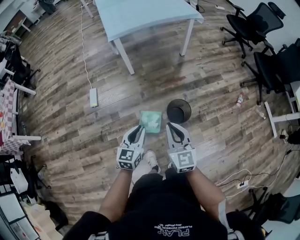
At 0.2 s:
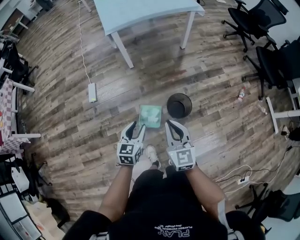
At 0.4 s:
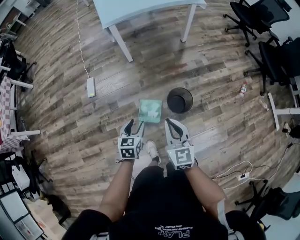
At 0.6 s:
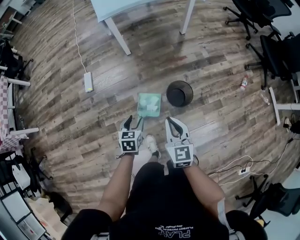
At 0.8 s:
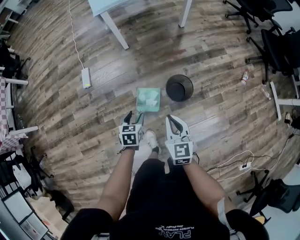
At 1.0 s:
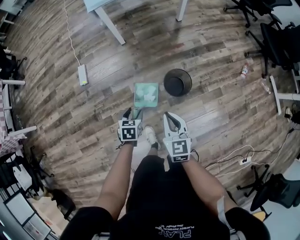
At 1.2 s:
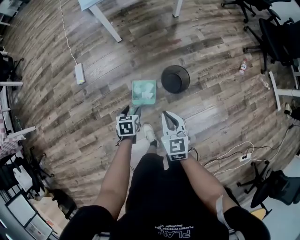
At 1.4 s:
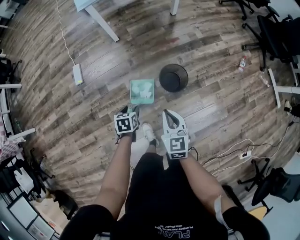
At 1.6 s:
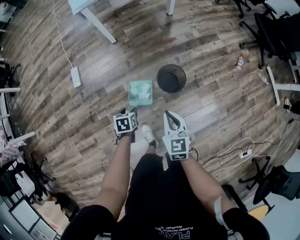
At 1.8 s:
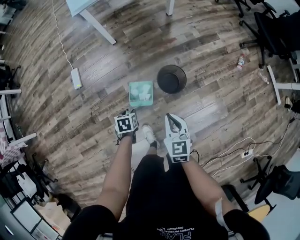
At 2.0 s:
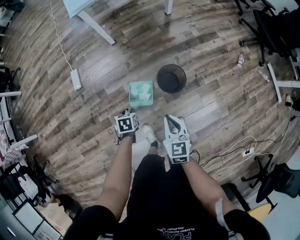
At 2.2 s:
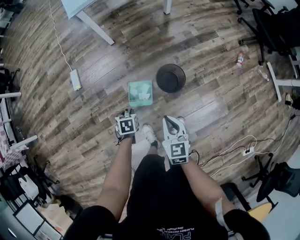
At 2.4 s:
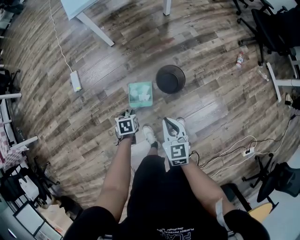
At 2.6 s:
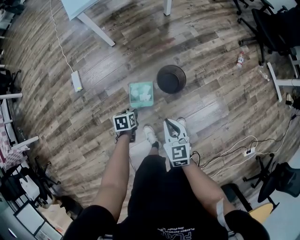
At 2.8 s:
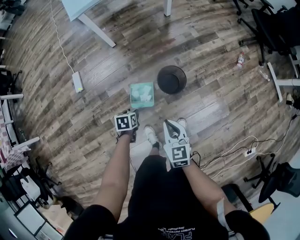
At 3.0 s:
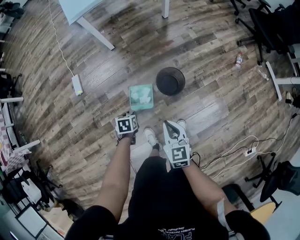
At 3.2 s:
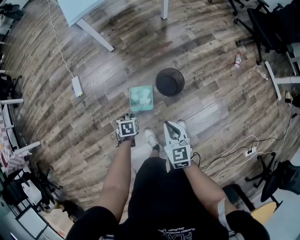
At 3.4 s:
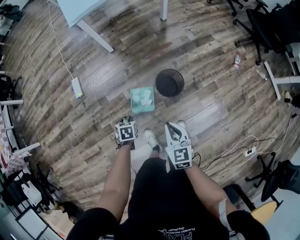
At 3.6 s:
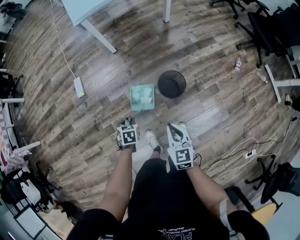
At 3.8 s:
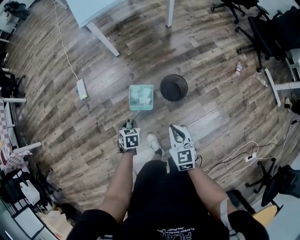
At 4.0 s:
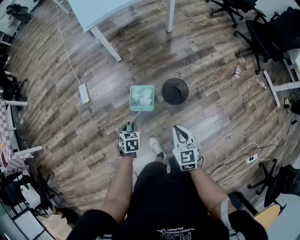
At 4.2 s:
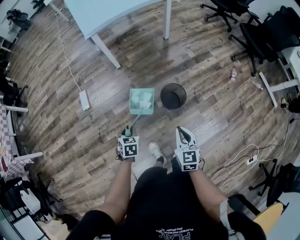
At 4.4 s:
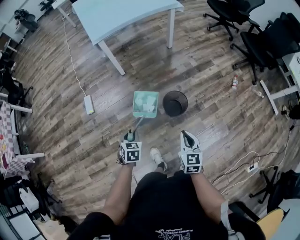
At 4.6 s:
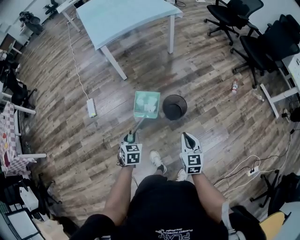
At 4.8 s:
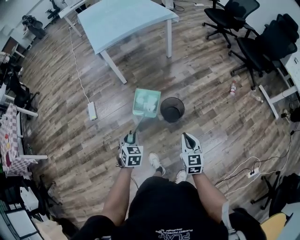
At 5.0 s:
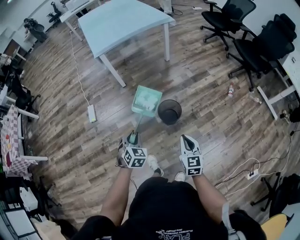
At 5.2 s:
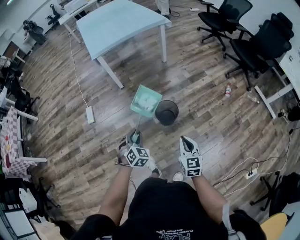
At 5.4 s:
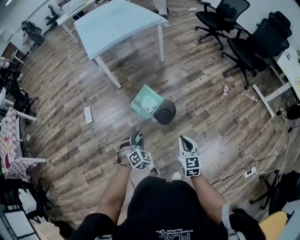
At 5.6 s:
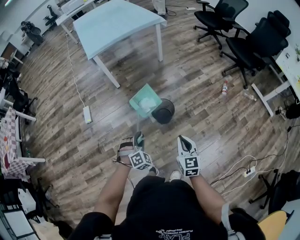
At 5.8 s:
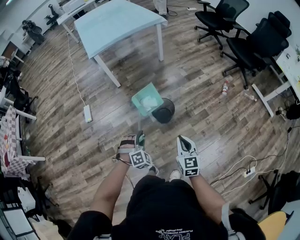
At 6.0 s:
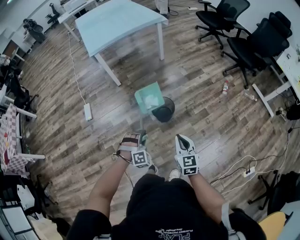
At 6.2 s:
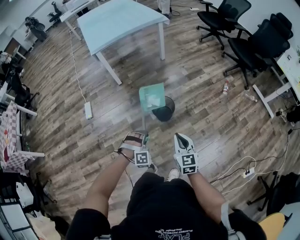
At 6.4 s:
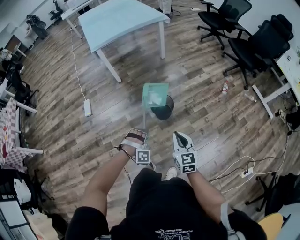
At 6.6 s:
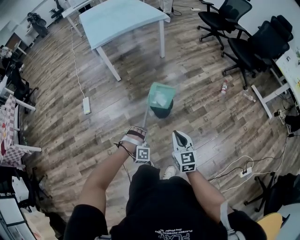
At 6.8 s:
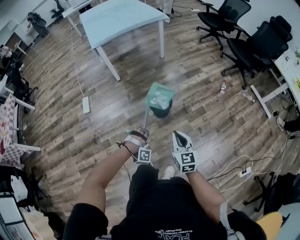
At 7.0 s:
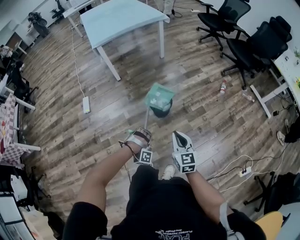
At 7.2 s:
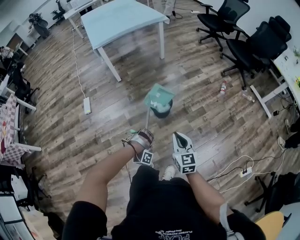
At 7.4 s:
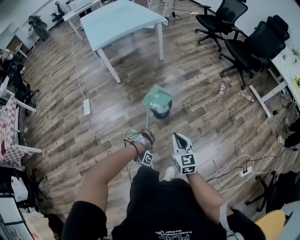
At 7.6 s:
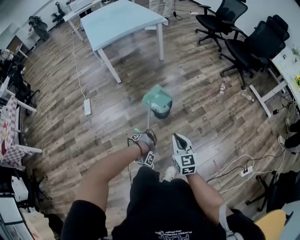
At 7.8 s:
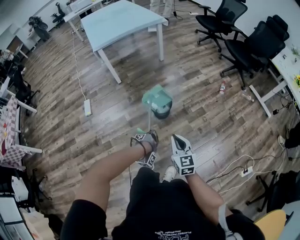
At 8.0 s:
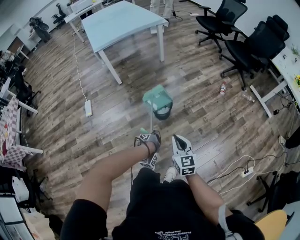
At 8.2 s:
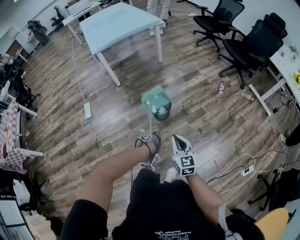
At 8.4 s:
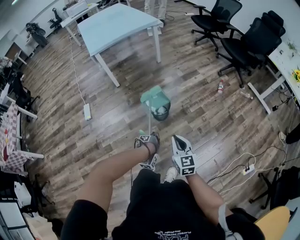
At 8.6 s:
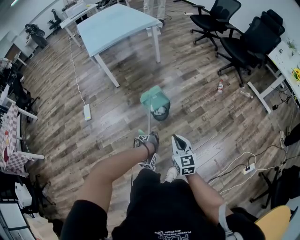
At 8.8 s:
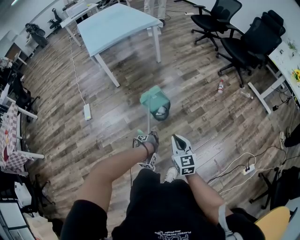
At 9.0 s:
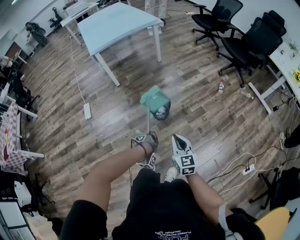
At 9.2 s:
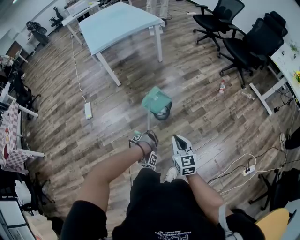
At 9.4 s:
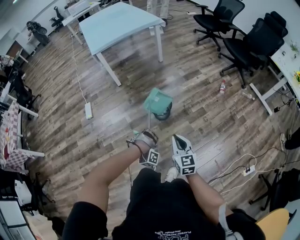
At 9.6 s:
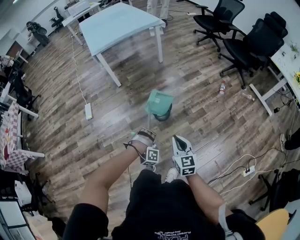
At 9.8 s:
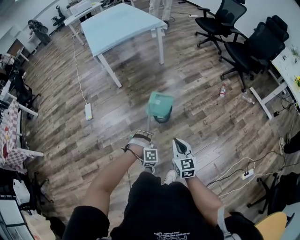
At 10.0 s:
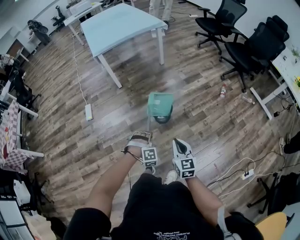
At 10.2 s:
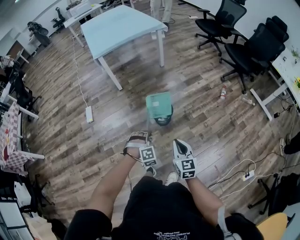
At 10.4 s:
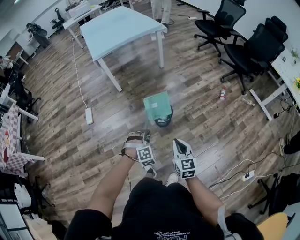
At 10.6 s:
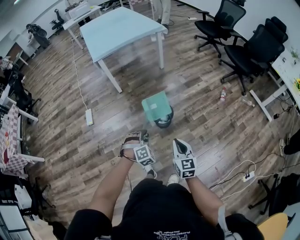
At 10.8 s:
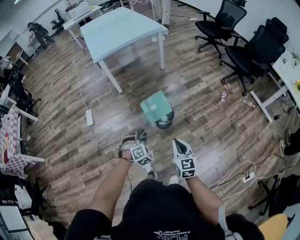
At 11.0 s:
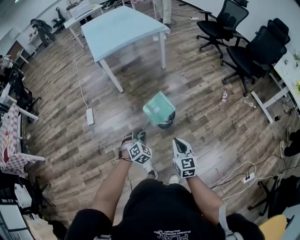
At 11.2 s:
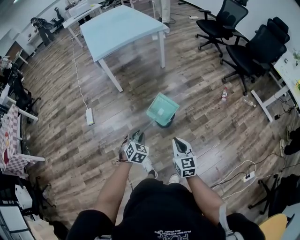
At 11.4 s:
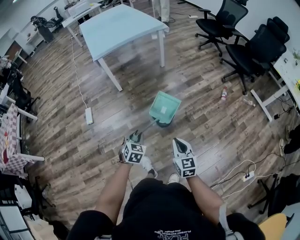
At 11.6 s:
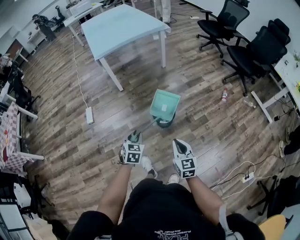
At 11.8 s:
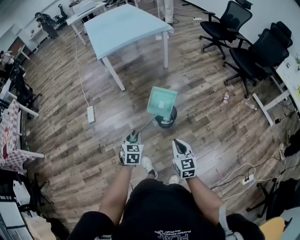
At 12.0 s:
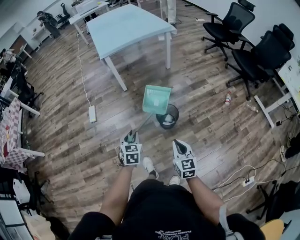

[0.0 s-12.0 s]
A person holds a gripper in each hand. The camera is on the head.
0.0 to 1.6 s: Both grippers move downward, about 20 cm. The right gripper rotates roughly 20 degrees, while the left gripper tilts its fingers about 40 degrees downward, and opens its fingers.
1.6 to 3.0 s: There are only small adjustments of the grippers.
3.0 to 4.4 s: The right gripper changes place by roughly 5 cm. Meanwhile the left gripper is displaced upward by about 15 cm, and rotates about 30 degrees.
4.4 to 6.0 s: The left gripper heads to the right and backward, covering roughly 20 cm, and twists about 80 degrees clockwise, seen from behind. Meanwhile the right gripper moves to the right and backward, some 15 cm.
6.0 to 7.6 s: The right gripper moves backward, approximately 10 cm. Meanwhile the left gripper heads backward and downward, covering approximately 15 cm, and twists roughly 70 degrees clockwise, seen from behind.
7.6 to 9.0 s: The grippers stay close to where they were, moving slightly.
9.0 to 10.4 s: The left gripper heads upward and forward, covering approximately 10 cm, and twists approximately 90 degrees counterclockwise, seen from behind.
10.4 to 12.0 s: The left gripper is displaced to the left and upward by about 15 cm, and rotates around the line of its fingers by some 70 degrees, counterclockwise from behind; the right gripper changes place by some 5 cm.

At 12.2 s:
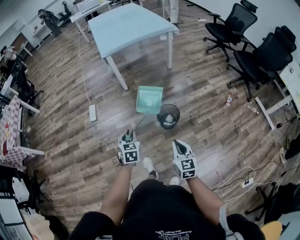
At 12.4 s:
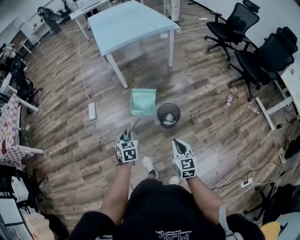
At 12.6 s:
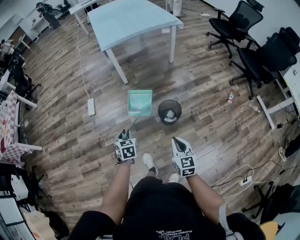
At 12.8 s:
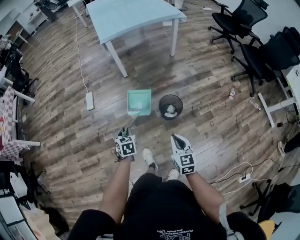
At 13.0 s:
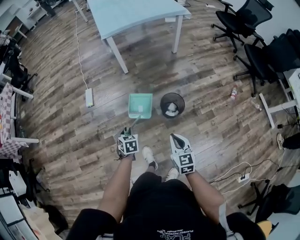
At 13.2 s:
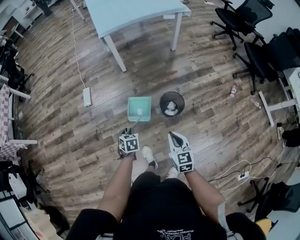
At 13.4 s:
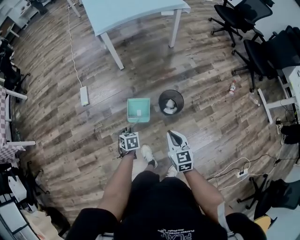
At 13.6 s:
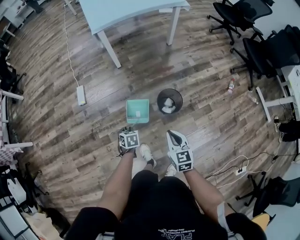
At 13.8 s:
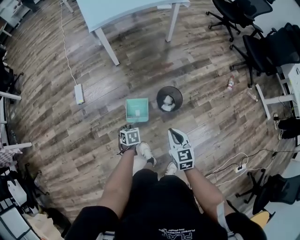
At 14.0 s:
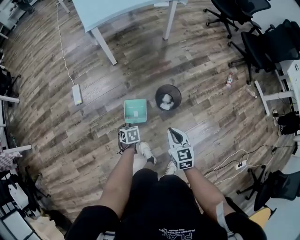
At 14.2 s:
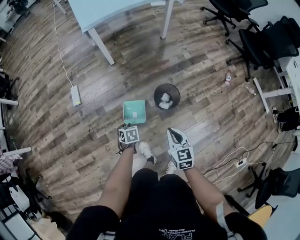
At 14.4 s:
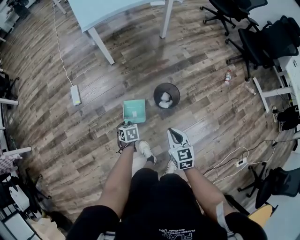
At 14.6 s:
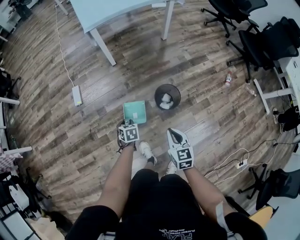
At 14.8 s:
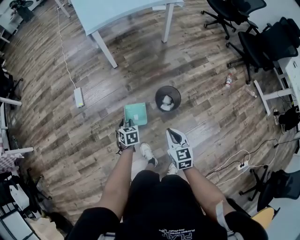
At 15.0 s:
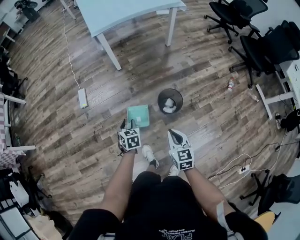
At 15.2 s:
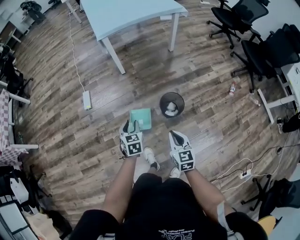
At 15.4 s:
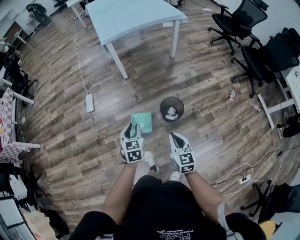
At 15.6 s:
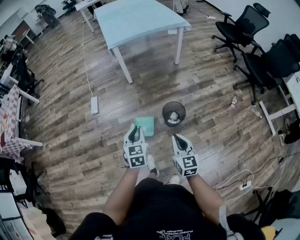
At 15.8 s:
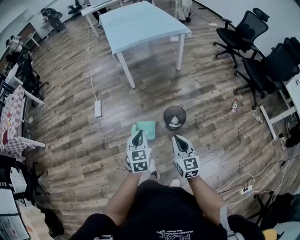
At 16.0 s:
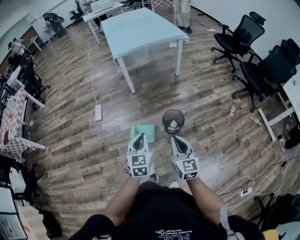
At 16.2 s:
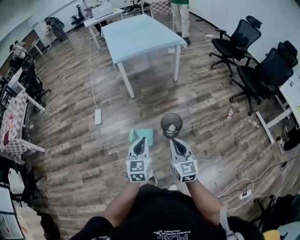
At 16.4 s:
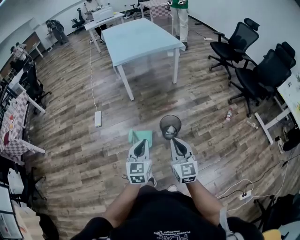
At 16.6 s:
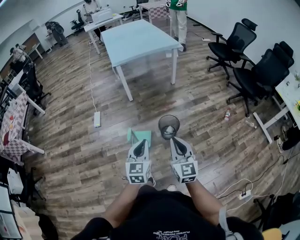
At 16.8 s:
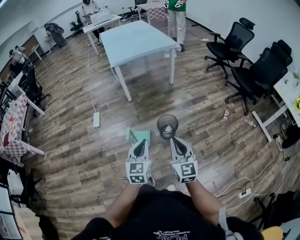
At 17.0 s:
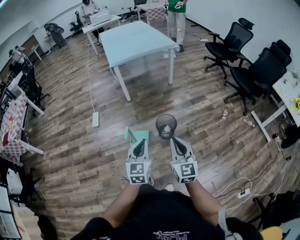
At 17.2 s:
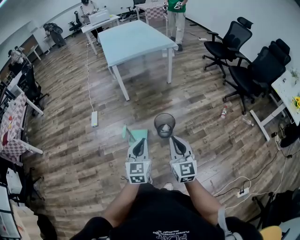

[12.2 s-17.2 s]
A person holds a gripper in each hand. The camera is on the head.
12.2 to 13.8 s: The right gripper goes approximately 15 cm forward, downward and to the left. Meanwhile the left gripper heads downward and forward, covering about 25 cm, and rotates roughly 30 degrees.
13.8 to 15.6 s: The left gripper is displaced upward by roughly 25 cm, and angles its fingers upward, by roughly 40 degrees, while the right gripper heads upward and backward, covering about 10 cm.
15.6 to 17.2 s: Both grippers move backward, upward and to the right, approximately 20 cm. The left gripper turns by about 20 degrees.

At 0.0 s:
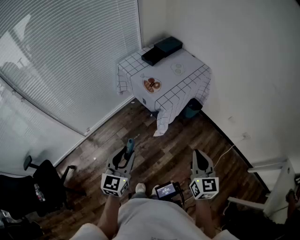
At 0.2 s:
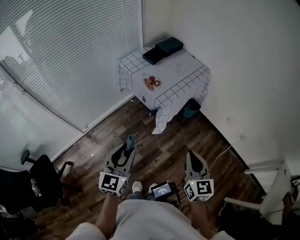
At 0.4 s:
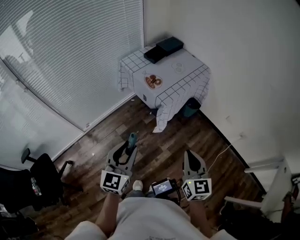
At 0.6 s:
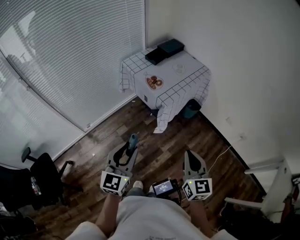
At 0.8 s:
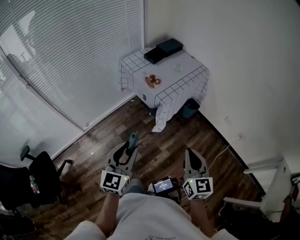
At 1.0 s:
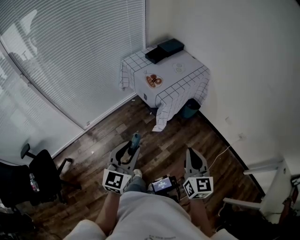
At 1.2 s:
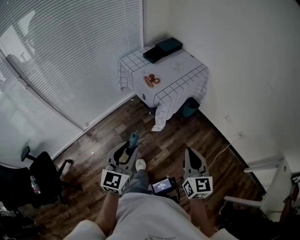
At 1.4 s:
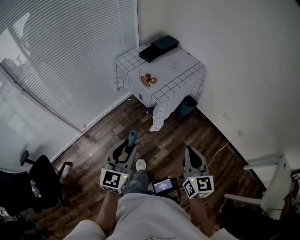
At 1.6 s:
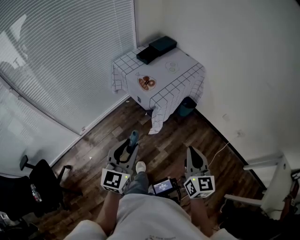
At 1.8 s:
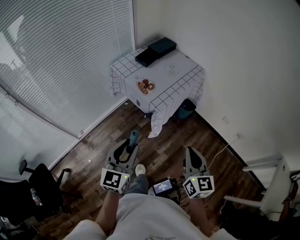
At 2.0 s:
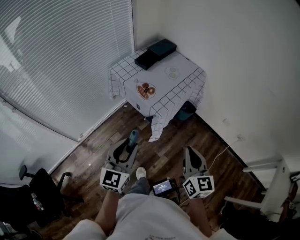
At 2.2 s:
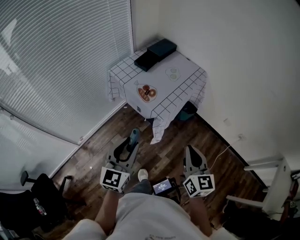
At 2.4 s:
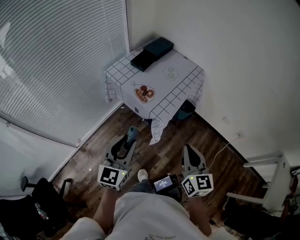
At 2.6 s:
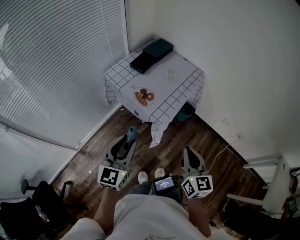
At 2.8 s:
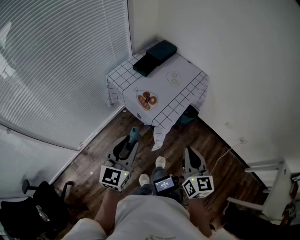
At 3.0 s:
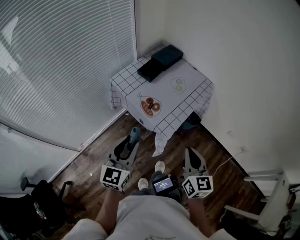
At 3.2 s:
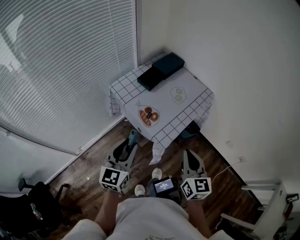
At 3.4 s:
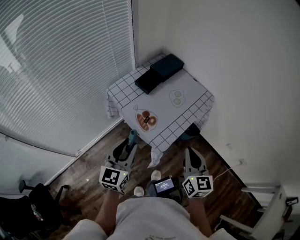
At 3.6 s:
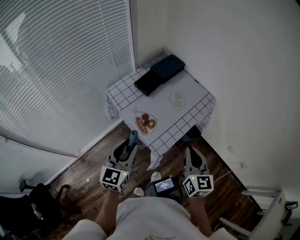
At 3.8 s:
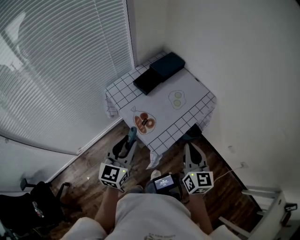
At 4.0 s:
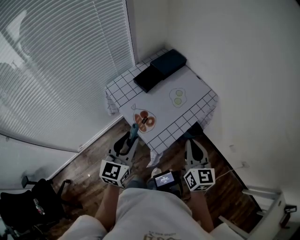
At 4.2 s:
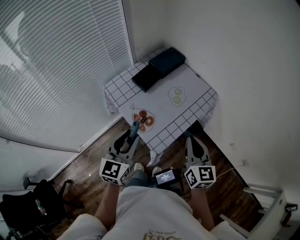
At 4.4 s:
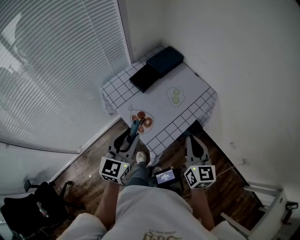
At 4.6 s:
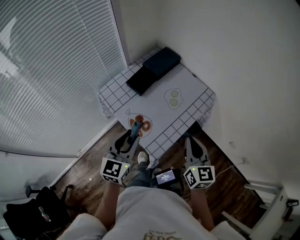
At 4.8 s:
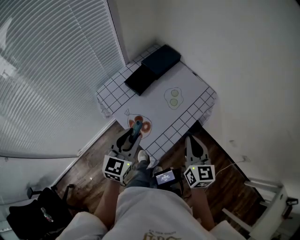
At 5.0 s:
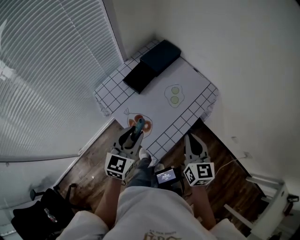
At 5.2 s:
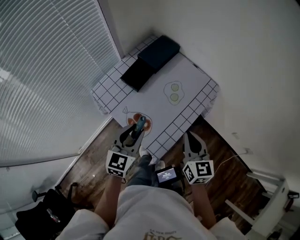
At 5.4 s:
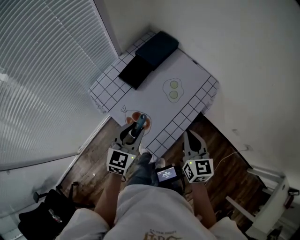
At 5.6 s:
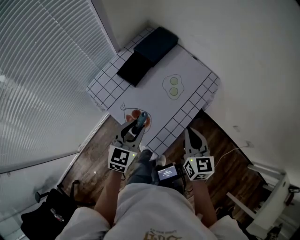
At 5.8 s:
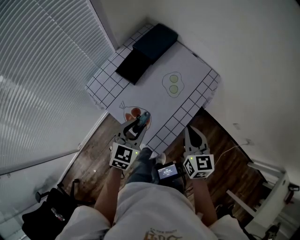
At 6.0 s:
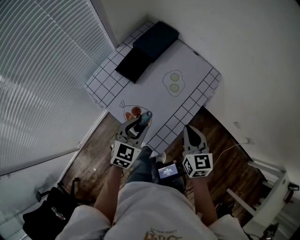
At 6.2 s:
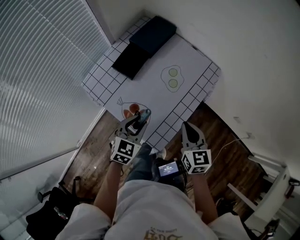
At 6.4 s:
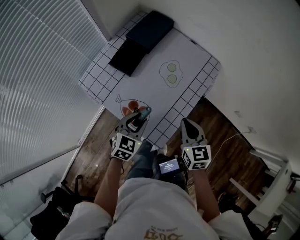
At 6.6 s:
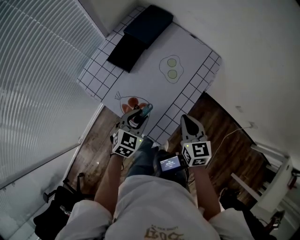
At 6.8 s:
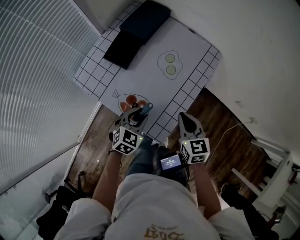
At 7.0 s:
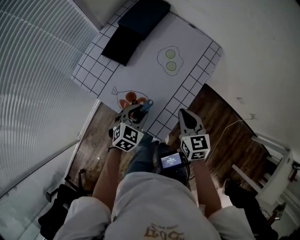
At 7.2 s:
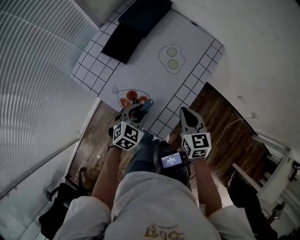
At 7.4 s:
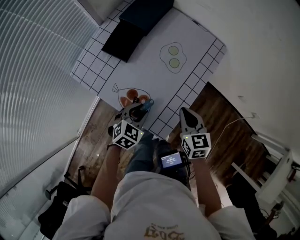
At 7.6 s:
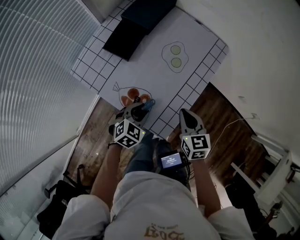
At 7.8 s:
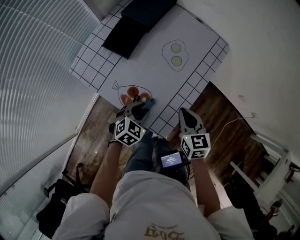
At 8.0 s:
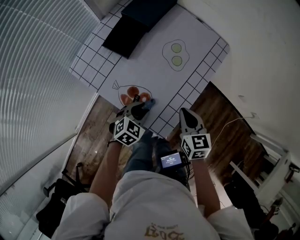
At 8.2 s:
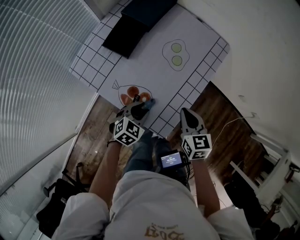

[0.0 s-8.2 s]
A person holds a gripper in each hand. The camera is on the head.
0.0 to 1.6 s: The left gripper shifts by roughly 5 cm.
1.6 to 3.2 s: The grippers both shift forward by about 25 cm.
3.2 to 5.0 s: The two grippers go some 20 cm forward.
5.0 to 6.6 s: The grippers both shift downward by approximately 15 cm. The left gripper changes its angle by approximately 30 degrees.
6.6 to 8.2 s: The left gripper goes about 10 cm downward. Meanwhile the right gripper travels downward by about 5 cm.
